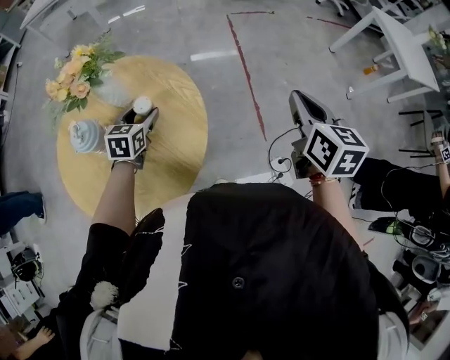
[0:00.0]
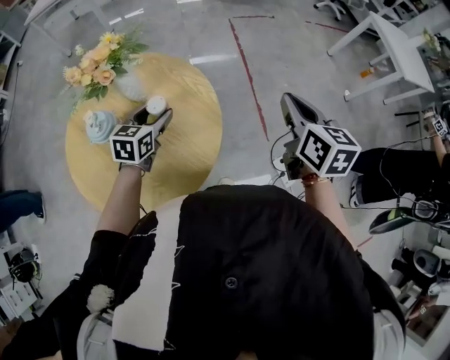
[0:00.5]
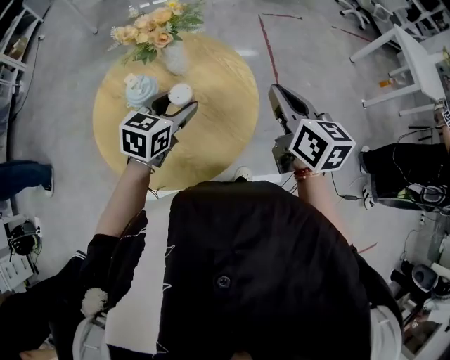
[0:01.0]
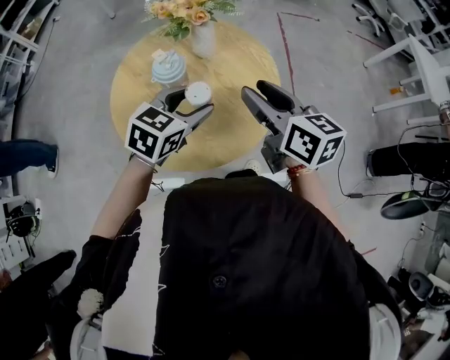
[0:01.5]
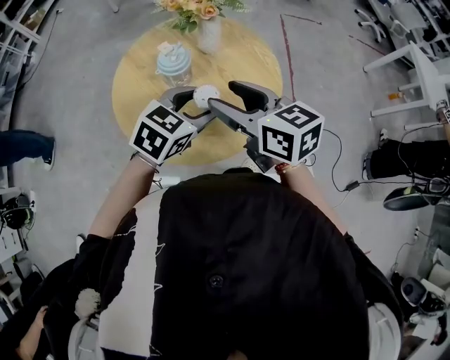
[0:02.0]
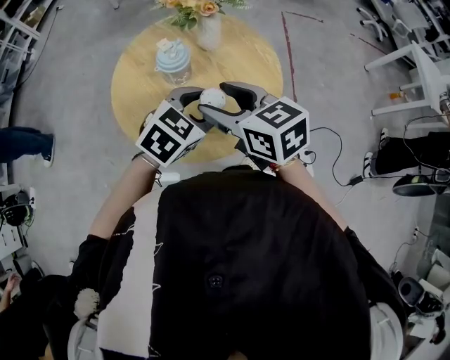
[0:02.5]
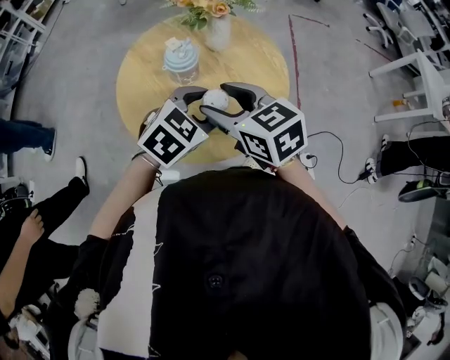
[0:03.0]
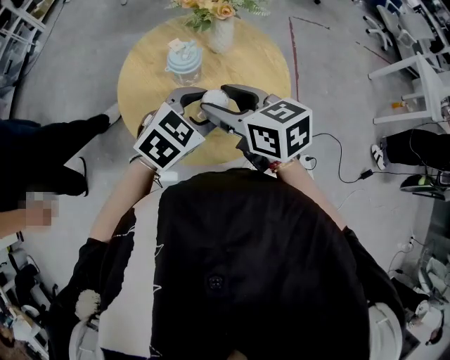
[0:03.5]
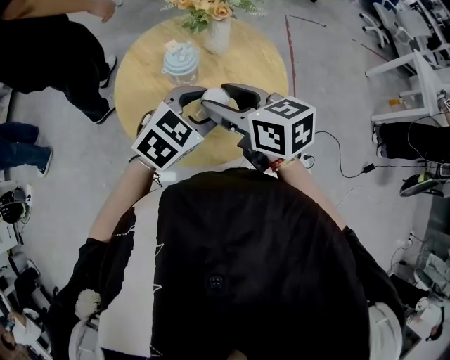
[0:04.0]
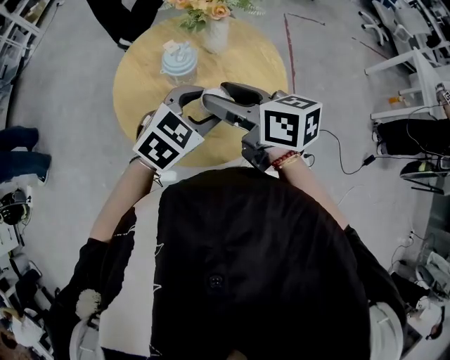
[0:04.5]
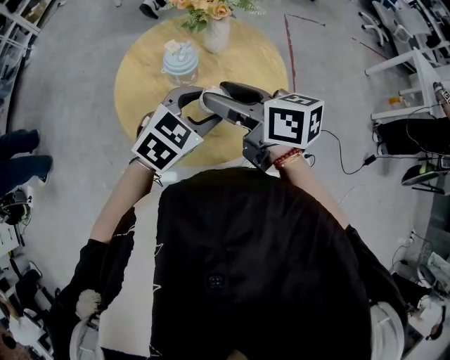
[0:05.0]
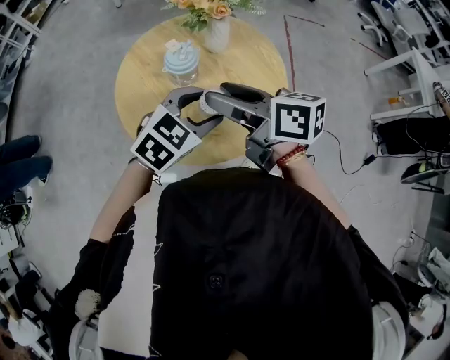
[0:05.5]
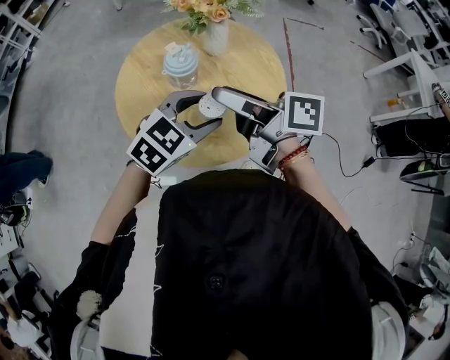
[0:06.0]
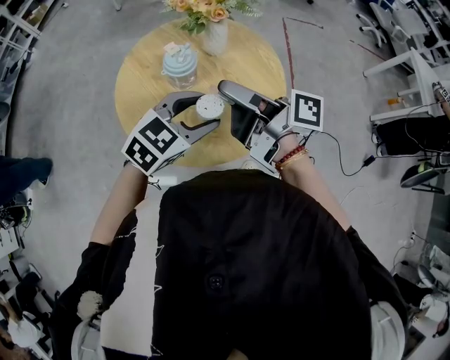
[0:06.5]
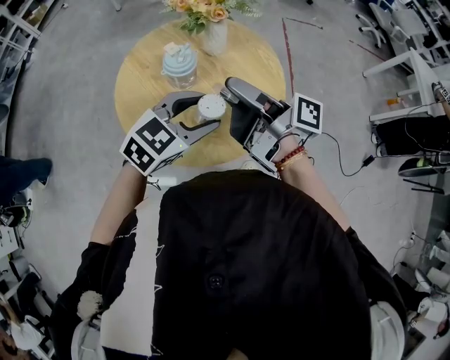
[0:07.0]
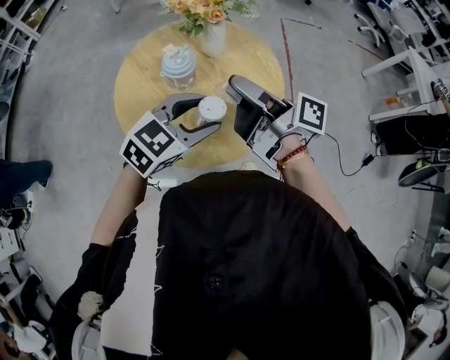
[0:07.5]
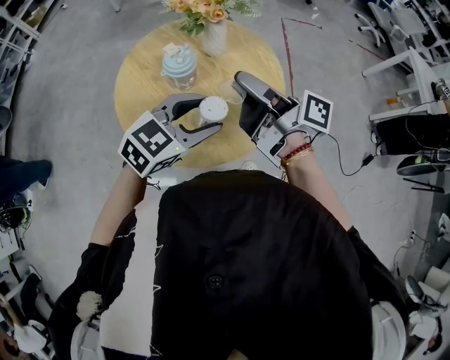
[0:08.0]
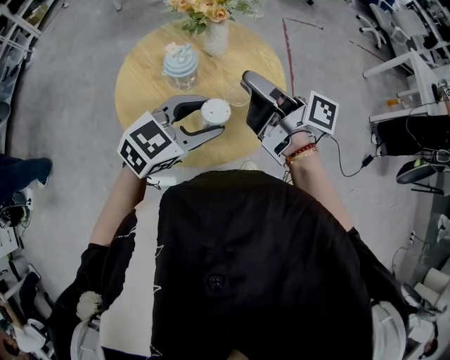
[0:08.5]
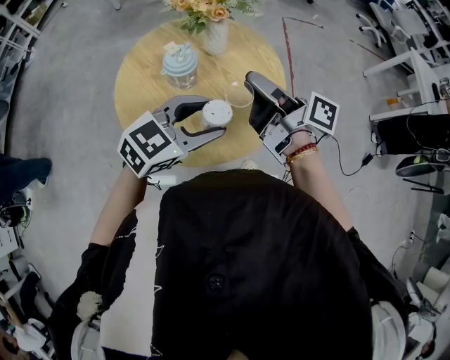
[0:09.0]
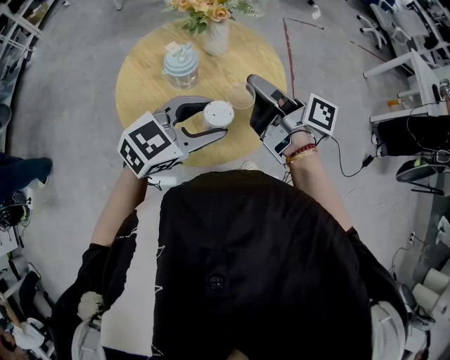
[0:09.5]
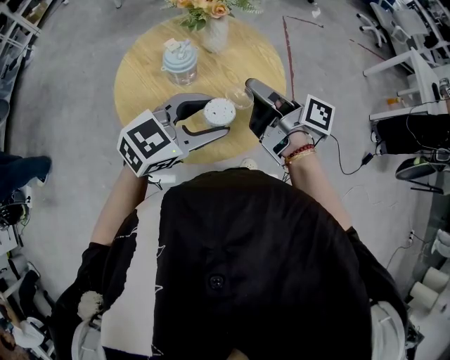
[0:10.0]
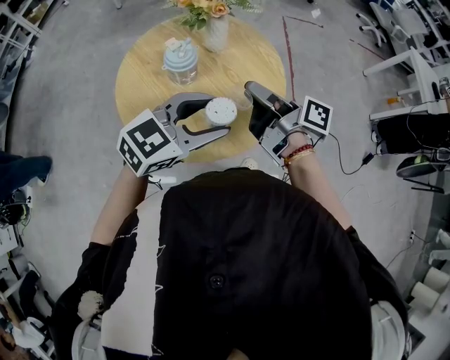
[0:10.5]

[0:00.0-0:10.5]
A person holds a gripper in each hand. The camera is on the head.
0:00.0 to 0:02.0: The right gripper travels to the left and backward by approximately 40 cm, swivels roughly 40 degrees, and opens its fingers; the left gripper goes some 25 cm backward and upward, and swivels some 20 degrees.
0:02.0 to 0:04.0: The grippers stay close to where they were, moving slightly.
0:04.0 to 0:06.5: The right gripper rotates around the line of its fingers by approximately 50 degrees, clockwise from behind.
0:06.5 to 0:08.5: The right gripper changes place by about 5 cm.
0:08.5 to 0:10.5: The right gripper heads downward, covering roughly 5 cm.

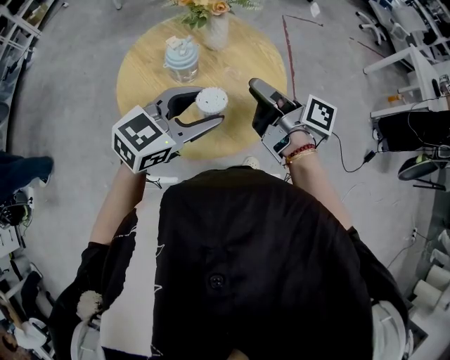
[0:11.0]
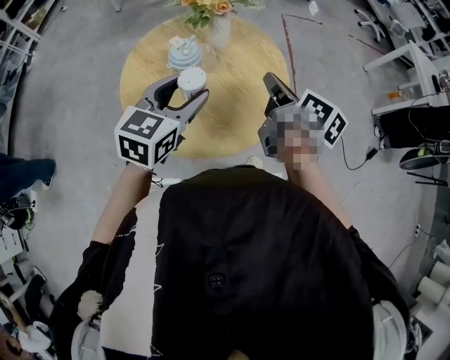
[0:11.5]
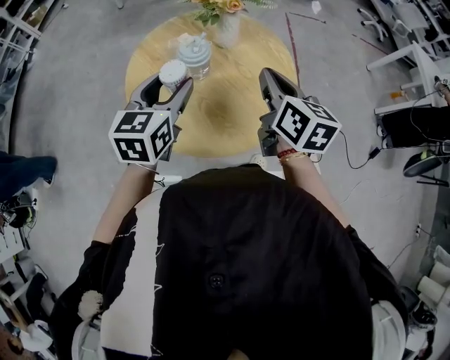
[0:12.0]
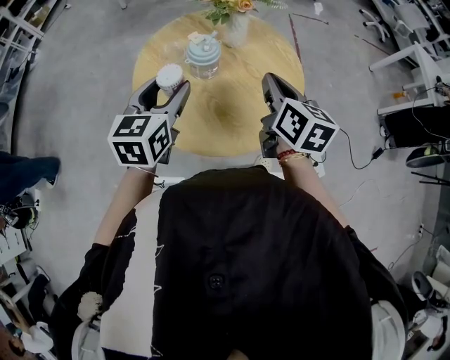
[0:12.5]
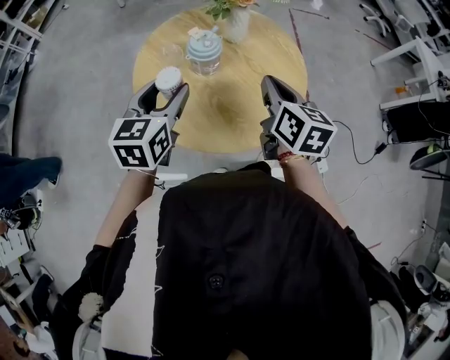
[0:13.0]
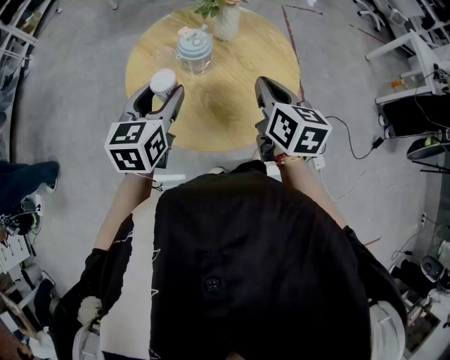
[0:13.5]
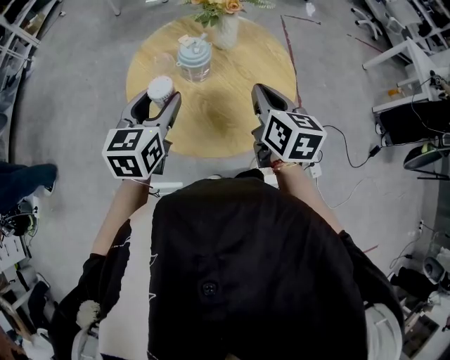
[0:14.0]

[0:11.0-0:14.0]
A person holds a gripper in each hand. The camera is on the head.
0:11.0 to 0:12.5: The left gripper travels to the left by roughly 15 cm, and turns by some 40 degrees; the right gripper rotates around the line of its fingers by about 50 degrees, counterclockwise from behind, and closes its fingers.
0:12.5 to 0:14.0: The grippers move only a little.

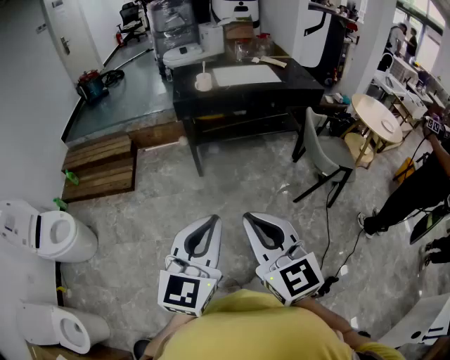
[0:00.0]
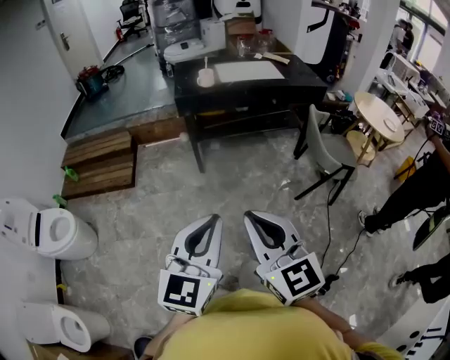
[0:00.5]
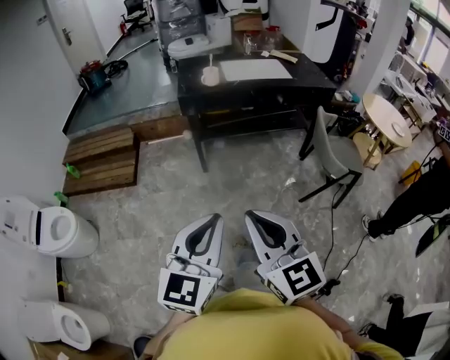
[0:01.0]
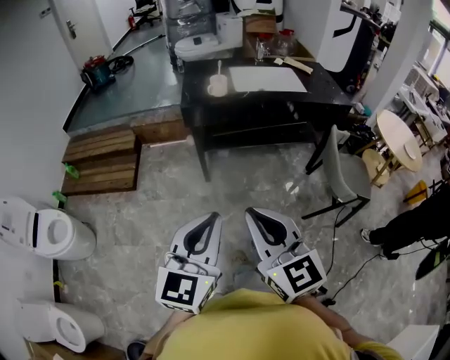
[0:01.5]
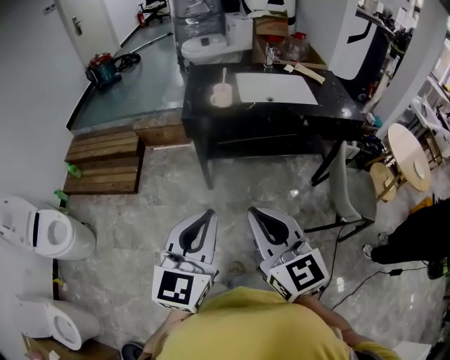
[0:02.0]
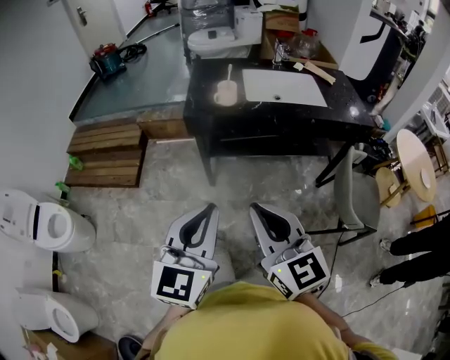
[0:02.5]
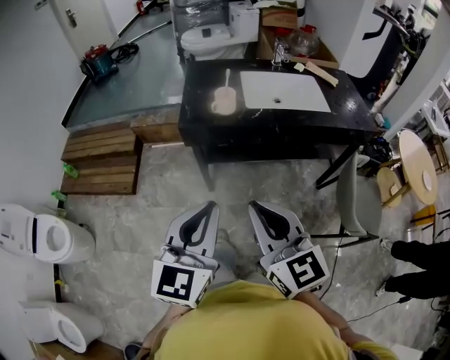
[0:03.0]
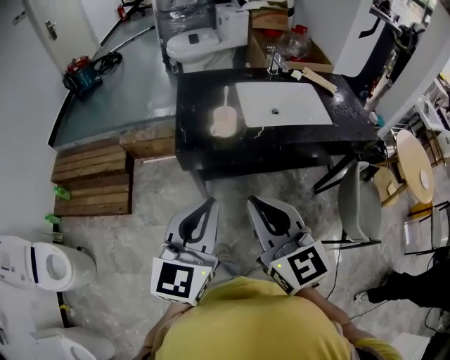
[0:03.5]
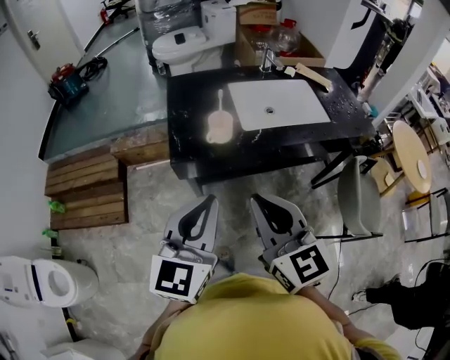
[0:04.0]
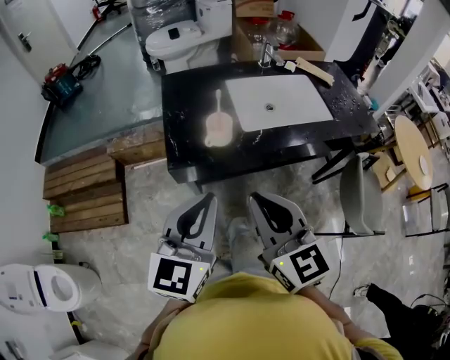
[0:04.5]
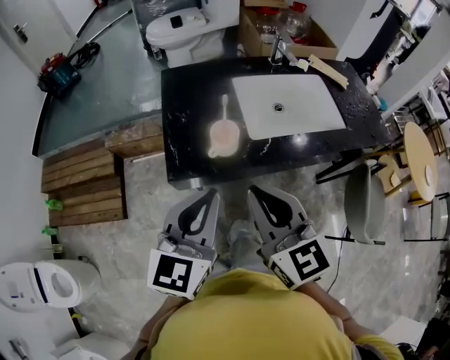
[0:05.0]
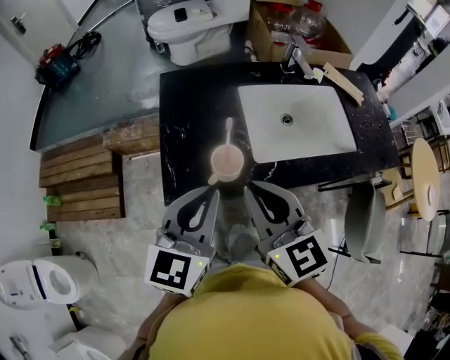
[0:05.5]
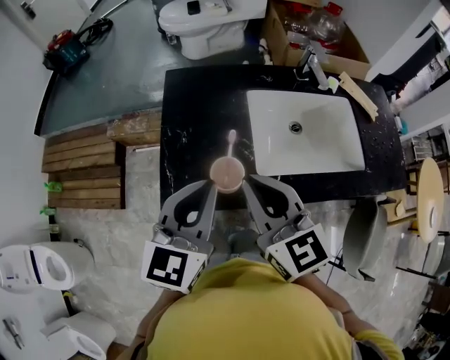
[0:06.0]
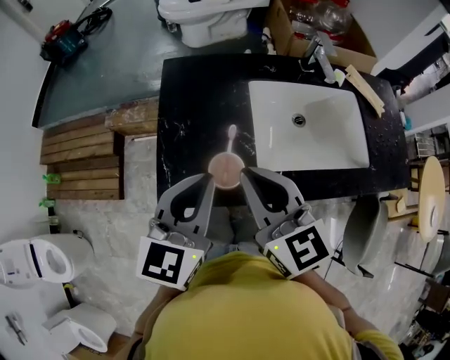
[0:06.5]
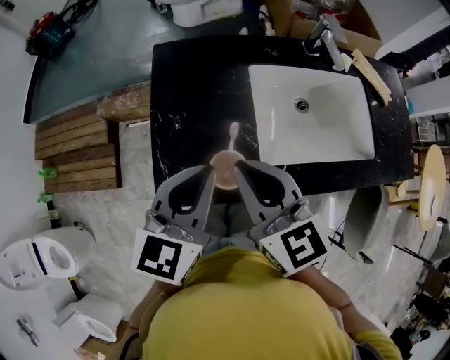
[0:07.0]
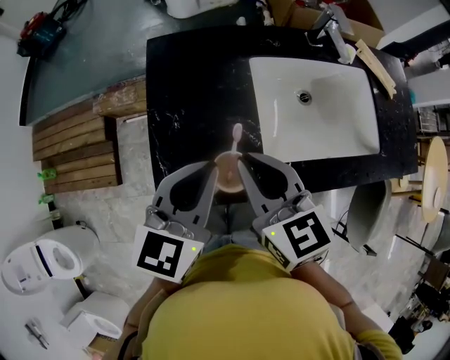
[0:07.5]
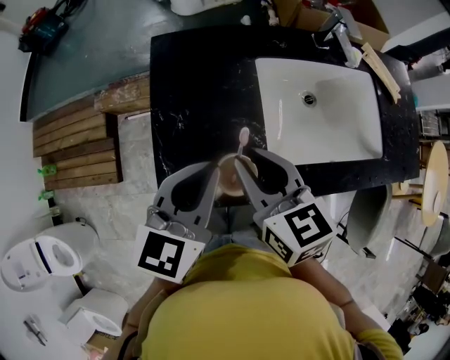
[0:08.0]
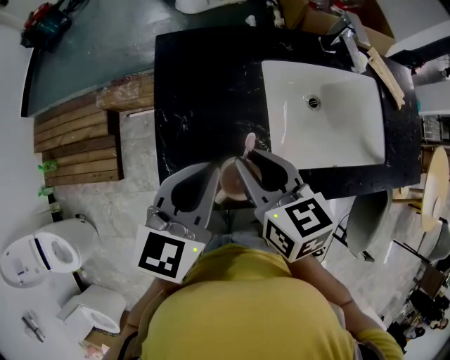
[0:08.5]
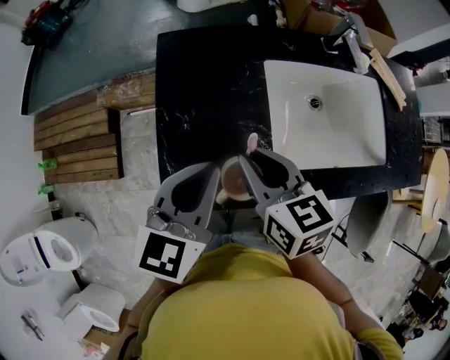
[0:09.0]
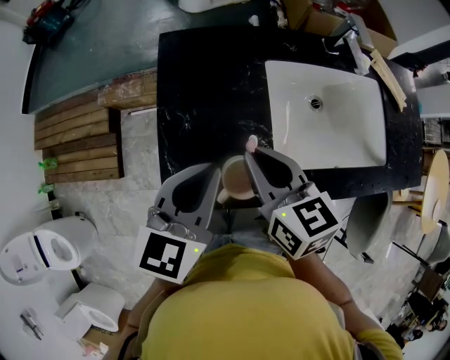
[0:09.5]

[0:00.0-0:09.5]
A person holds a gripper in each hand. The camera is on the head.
0:00.0 to 0:02.0: The grippers both shift forward by some 30 cm.
0:02.0 to 0:04.0: The two grippers go roughly 30 cm forward.
0:04.0 to 0:05.5: The grippers both shift forward by about 20 cm.
0:05.5 to 0:07.5: The grippers both shift forward and downward by roughly 15 cm.
0:07.5 to 0:09.5: The grippers make only small movements.

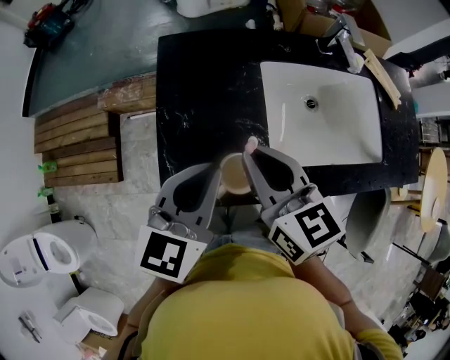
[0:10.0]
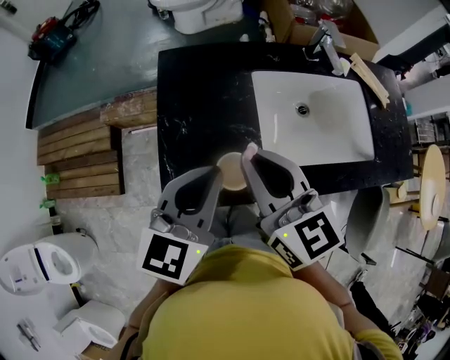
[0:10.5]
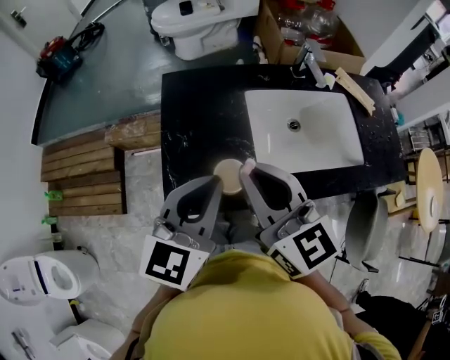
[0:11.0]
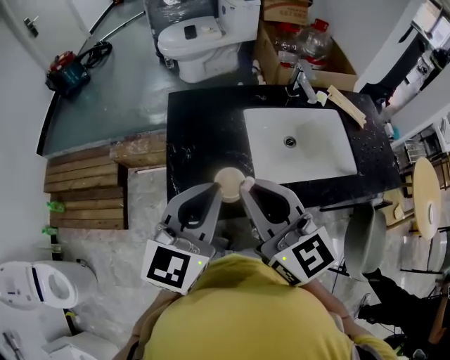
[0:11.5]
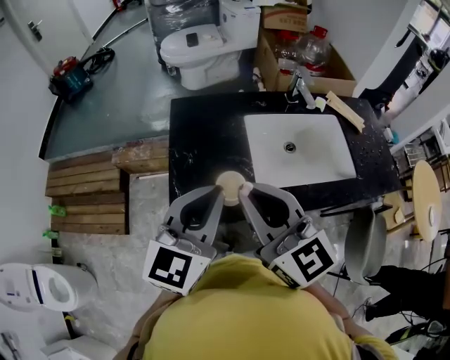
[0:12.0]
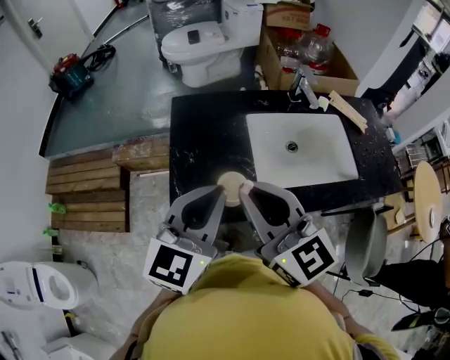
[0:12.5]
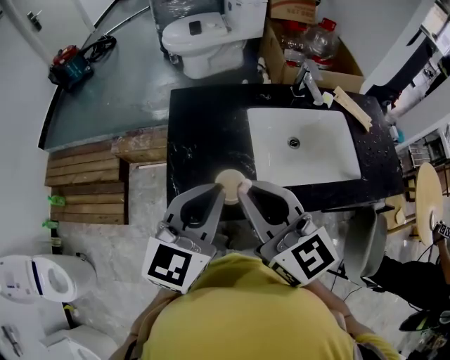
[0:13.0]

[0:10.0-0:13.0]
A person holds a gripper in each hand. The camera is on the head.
0:10.0 to 0:11.5: Both grippers travel together upward and backward, about 15 cm. The right gripper changes its angle by about 20 degrees.
0:11.5 to 0:13.0: There are only small adjustments of the grippers.
